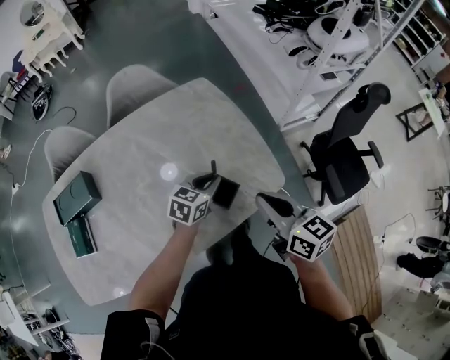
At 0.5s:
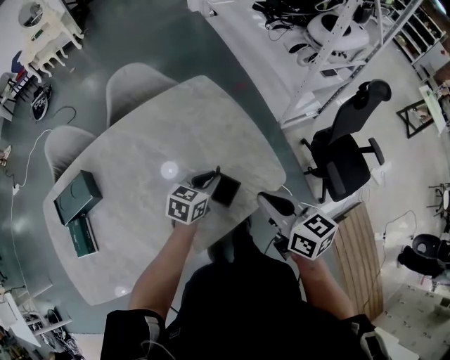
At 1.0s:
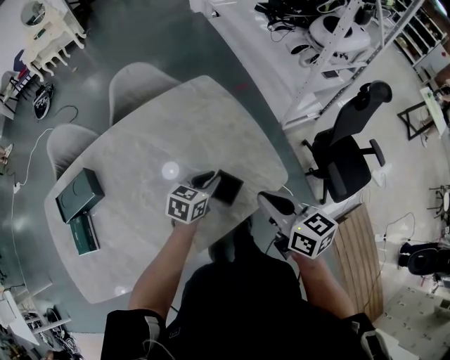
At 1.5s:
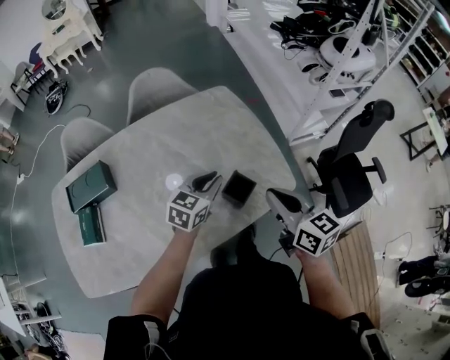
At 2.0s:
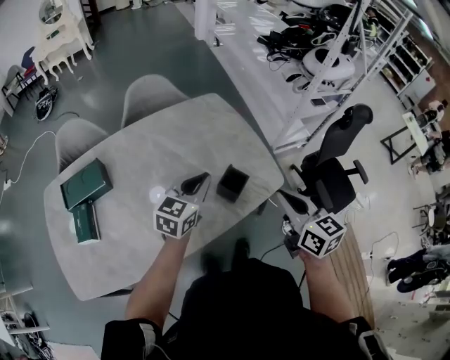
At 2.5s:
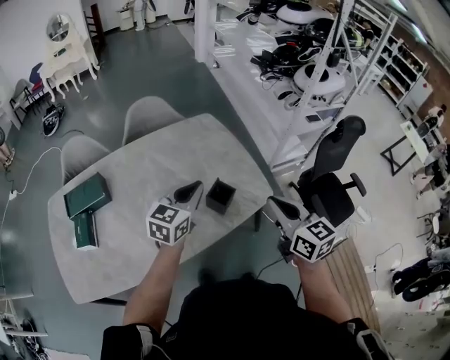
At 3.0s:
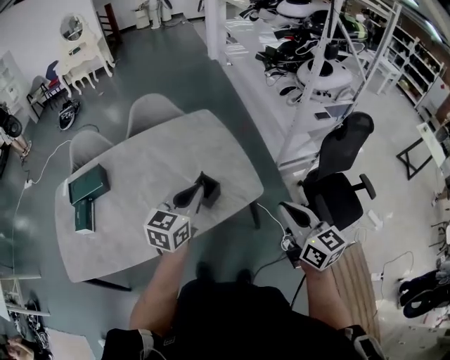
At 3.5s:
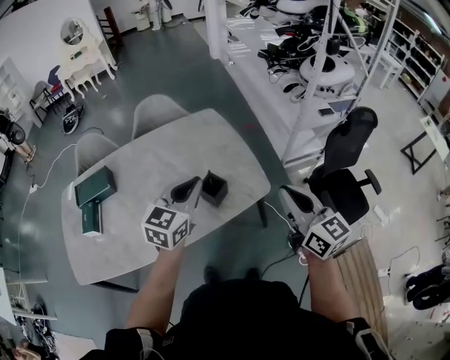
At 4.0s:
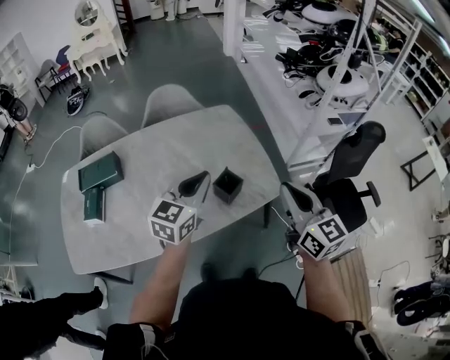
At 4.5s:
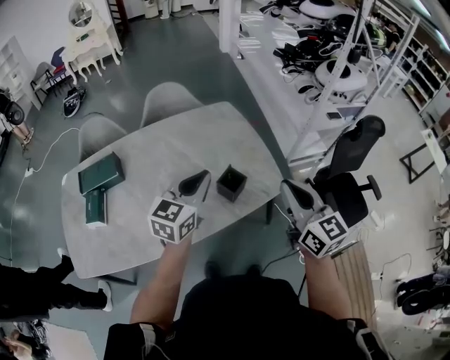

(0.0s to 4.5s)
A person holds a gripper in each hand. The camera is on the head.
0.0s - 2.0s: The left gripper moves upward, backward and to the left, roughly 20 cm, and turns by some 20 degrees; the right gripper heads backward and upward, covering approximately 10 cm.
2.0s - 4.5s: The right gripper heads upward, covering approximately 5 cm, and goes to the right and returns, about 15 cm each way; the left gripper moves upward and backward, about 10 cm, and moves some 15 cm to the right and comes back.

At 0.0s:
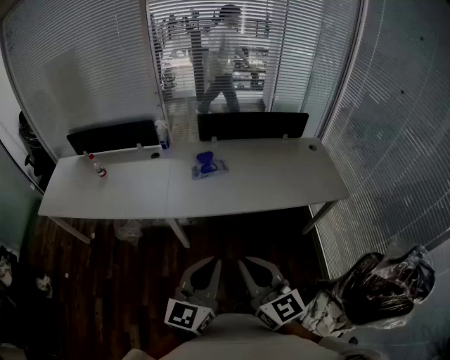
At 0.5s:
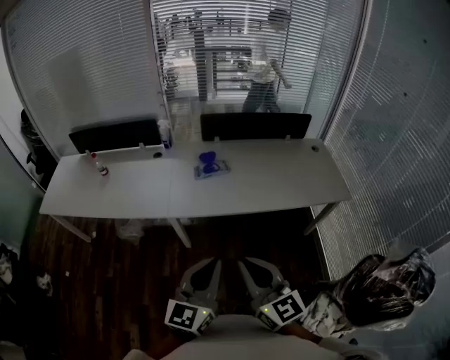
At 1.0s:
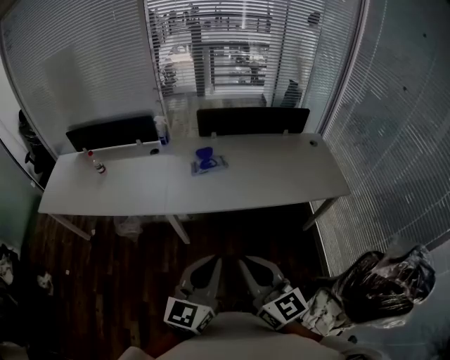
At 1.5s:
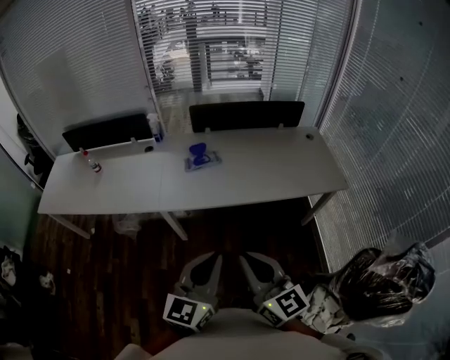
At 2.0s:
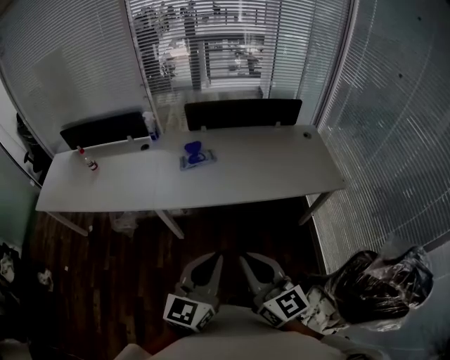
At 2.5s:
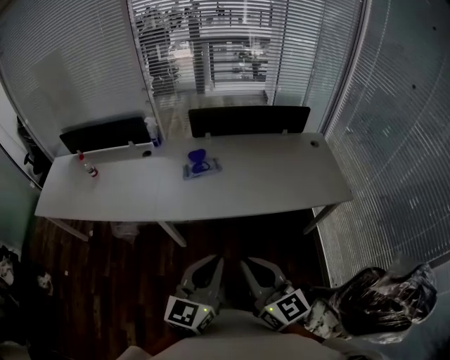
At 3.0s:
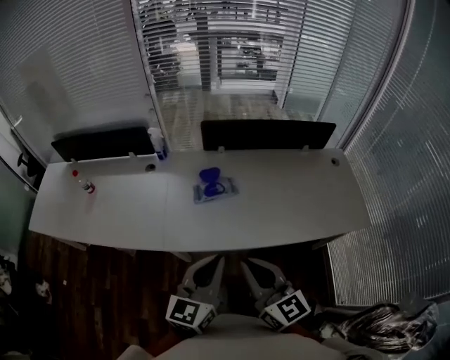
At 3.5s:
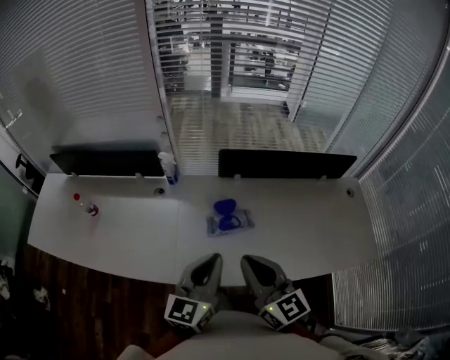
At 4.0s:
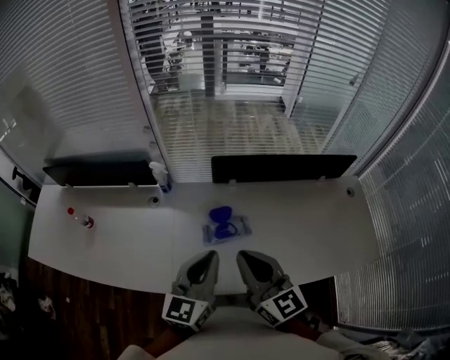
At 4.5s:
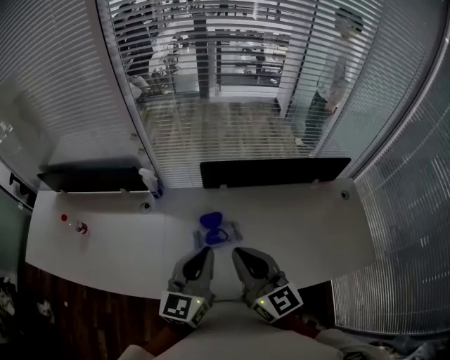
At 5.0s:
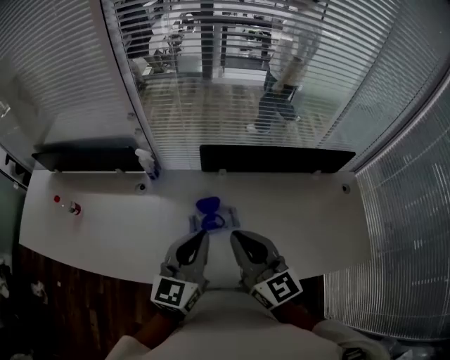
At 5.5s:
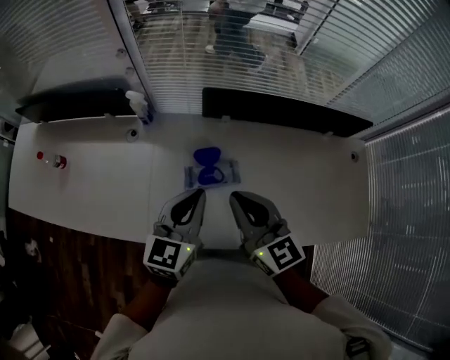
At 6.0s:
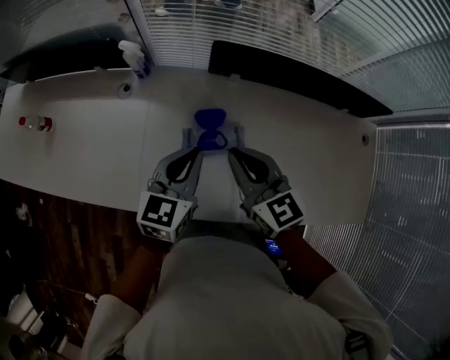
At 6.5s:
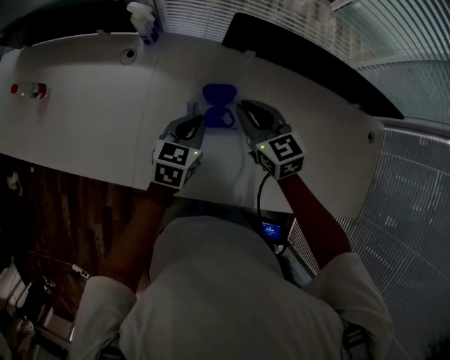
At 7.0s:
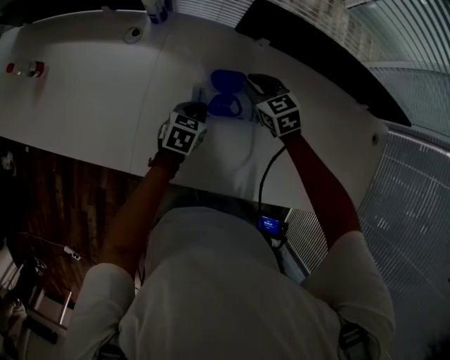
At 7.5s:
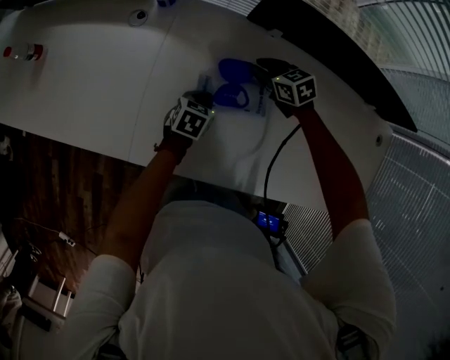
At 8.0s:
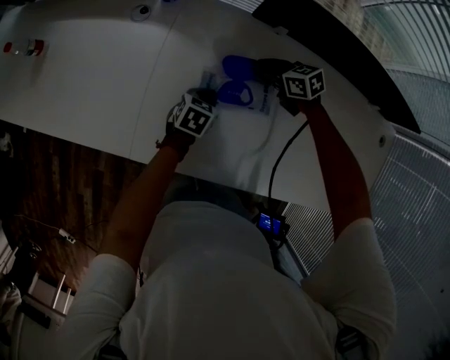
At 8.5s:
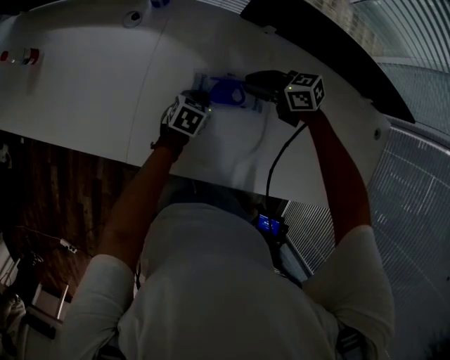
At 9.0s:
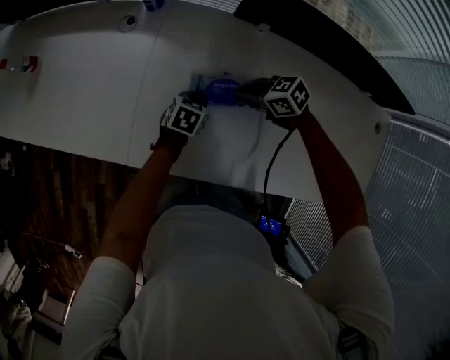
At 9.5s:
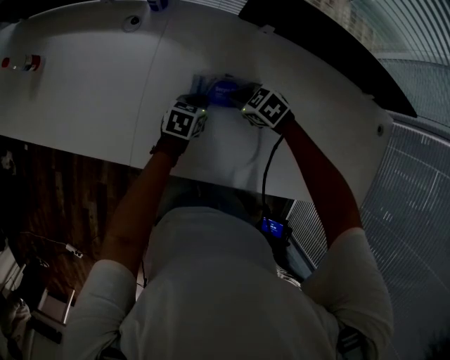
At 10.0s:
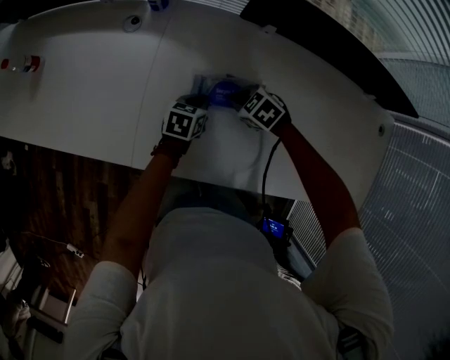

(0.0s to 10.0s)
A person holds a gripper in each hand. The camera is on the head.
0.0s - 2.0s: Both grippers move to the right, roughly 10 cm.
2.0s - 4.0s: The pair of grippers is taken forward, roughly 50 cm.
4.0s - 6.0s: The grippers both shift downward and forward by about 20 cm. The right gripper swivels about 20 degrees.
6.0s - 8.0s: The left gripper goes some 30 cm downward, and tilts its fingers some 30 degrees downward; the right gripper is displaced downward and forward by some 30 cm, swivels about 40 degrees, and opens up.
8.0s - 10.0s: The right gripper changes place by approximately 15 cm, turns by approximately 30 degrees, and closes.

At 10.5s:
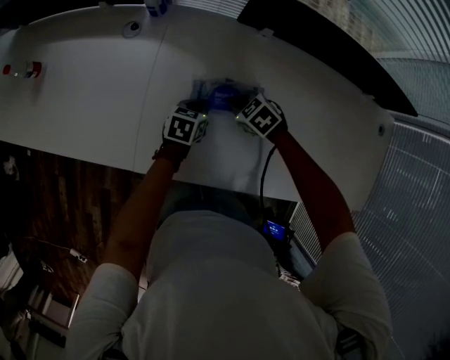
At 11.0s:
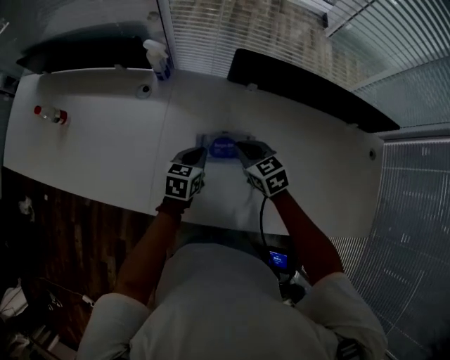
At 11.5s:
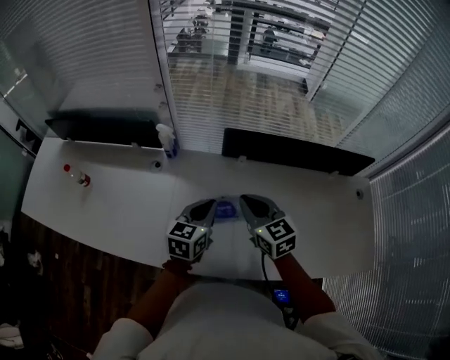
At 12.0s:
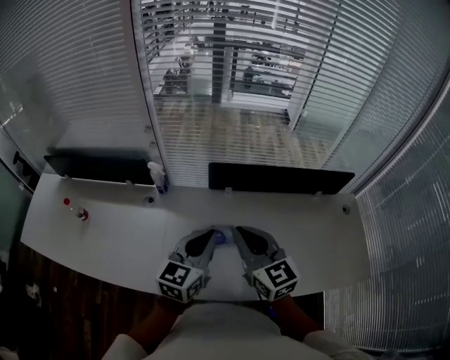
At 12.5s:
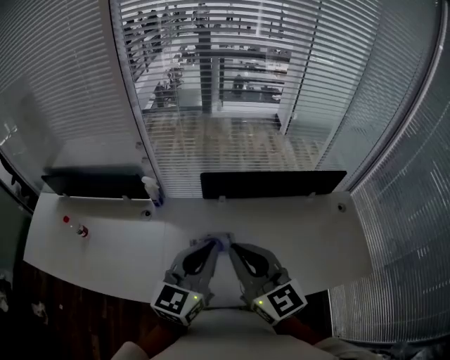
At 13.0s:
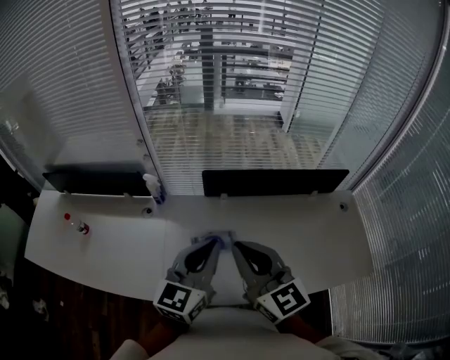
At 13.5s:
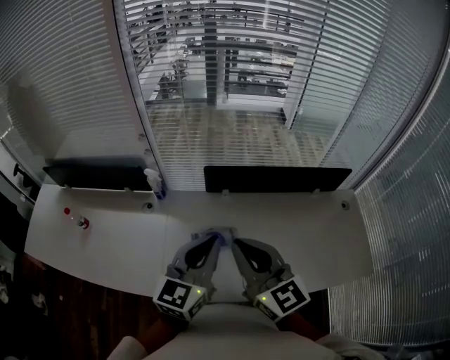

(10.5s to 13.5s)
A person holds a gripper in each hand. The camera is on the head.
10.5s - 12.0s: Both grippers travel together upward, approximately 40 cm. The right gripper points its fingers approximately 50 degrees further upward, while the left gripper angles its fingers upward, by some 40 degrees.
12.0s - 13.5s: Both grippers move upward, roughly 5 cm.

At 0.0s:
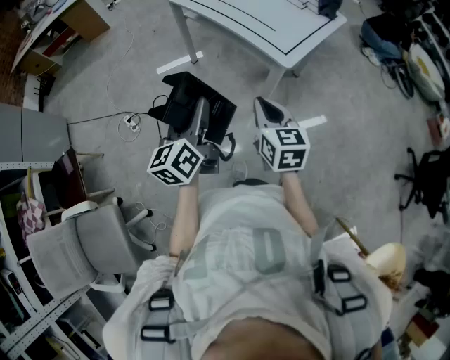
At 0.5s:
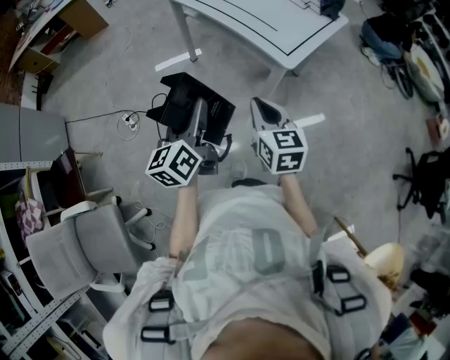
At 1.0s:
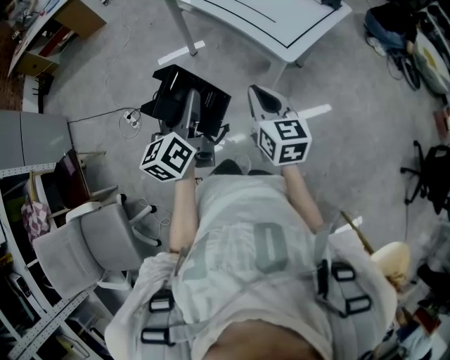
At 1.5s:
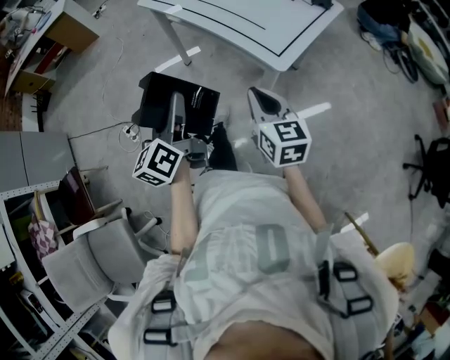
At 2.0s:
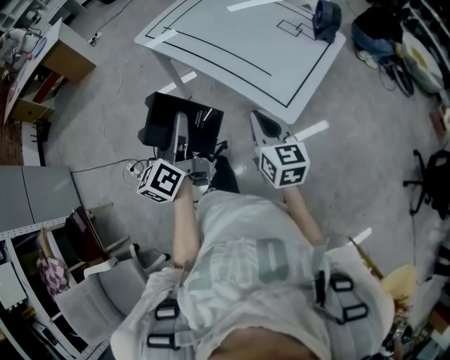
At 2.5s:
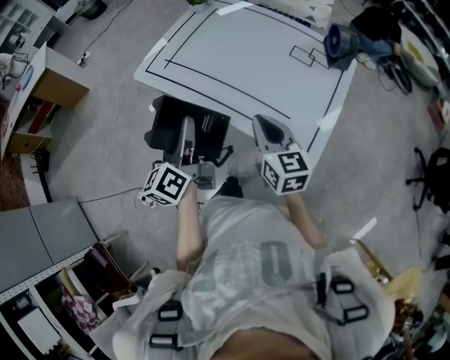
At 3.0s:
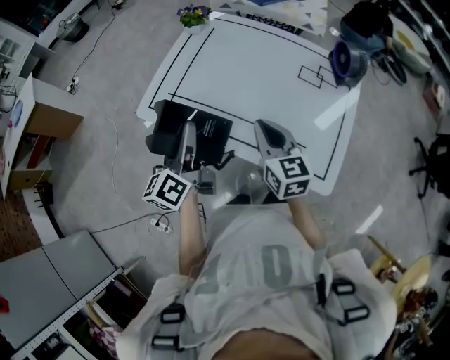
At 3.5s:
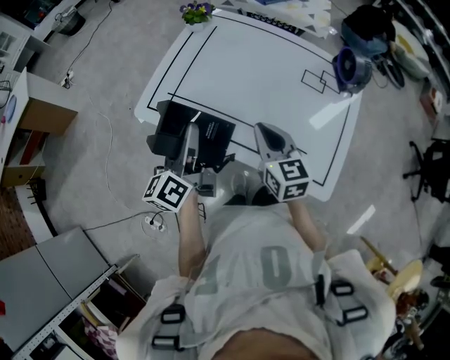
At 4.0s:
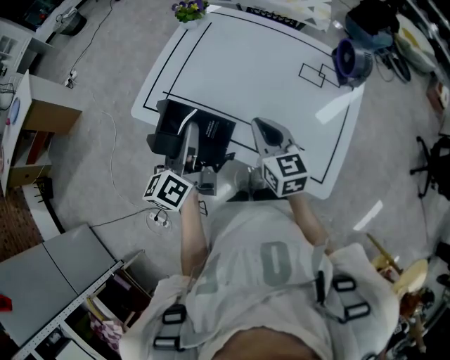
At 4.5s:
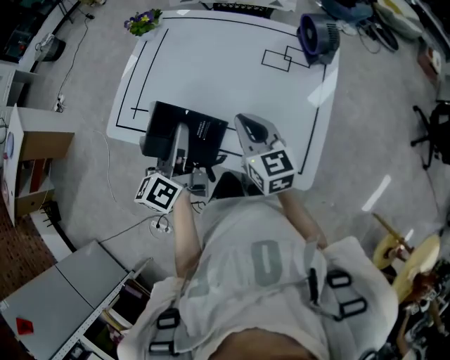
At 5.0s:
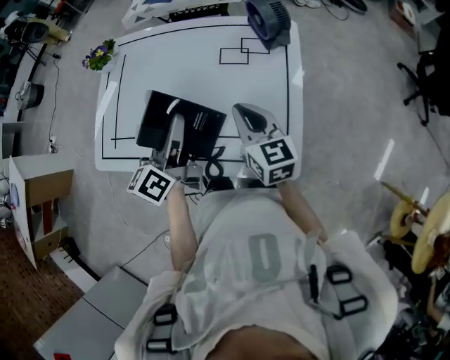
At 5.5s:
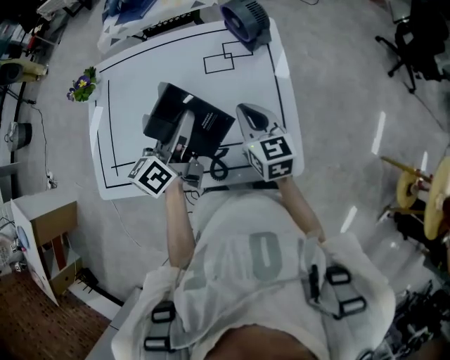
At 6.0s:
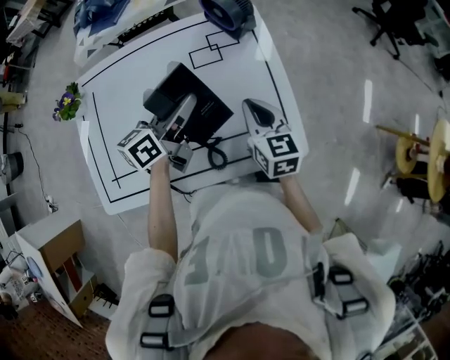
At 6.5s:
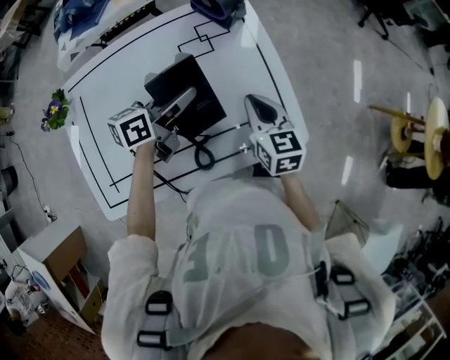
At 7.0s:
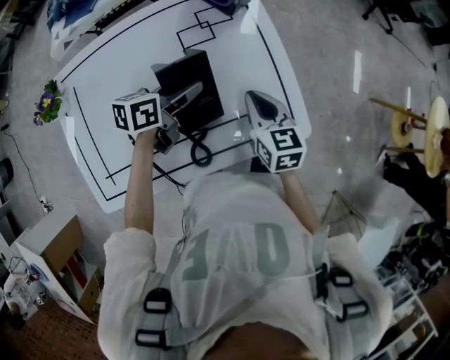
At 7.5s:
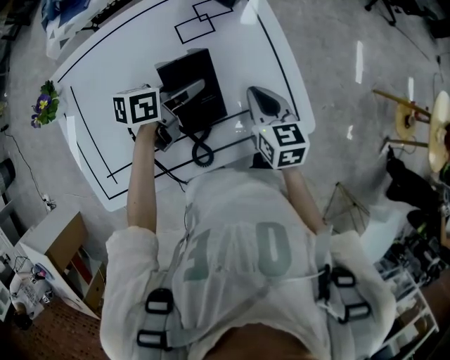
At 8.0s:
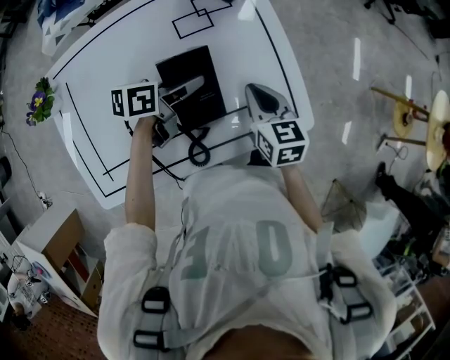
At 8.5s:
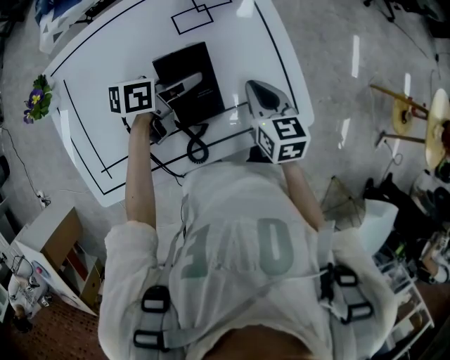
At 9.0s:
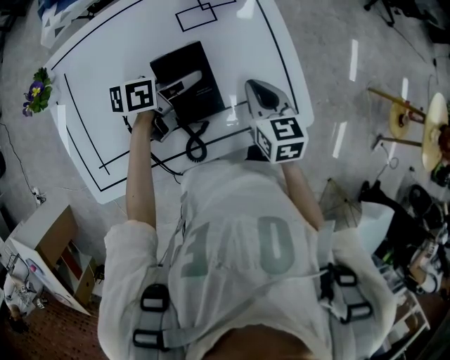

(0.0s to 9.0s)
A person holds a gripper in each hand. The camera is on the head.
0.0s - 2.0s: Both grippers travel together forward, some 25 cm.
2.0s - 4.5s: The two grippers go approximately 35 cm forward. The left gripper rotates some 30 degrees.
4.5s - 7.0s: The right gripper shifts by some 15 cm, and rotates about 40 degrees. Meanwhile the left gripper ends up approximately 25 cm from where it was, and swivels about 80 degrees.
7.0s - 9.0s: The grippers stay close to where they were, moving slightly.
